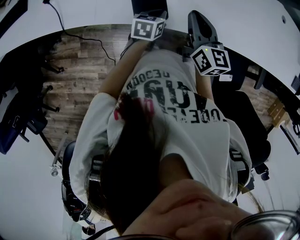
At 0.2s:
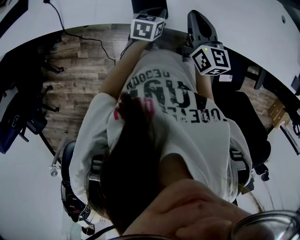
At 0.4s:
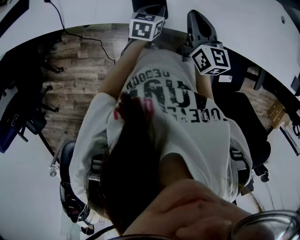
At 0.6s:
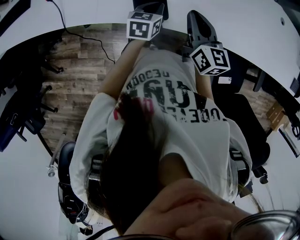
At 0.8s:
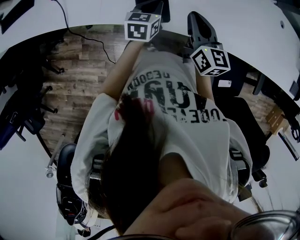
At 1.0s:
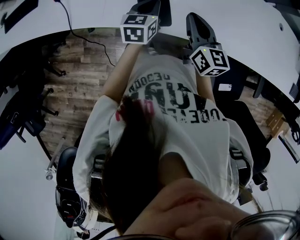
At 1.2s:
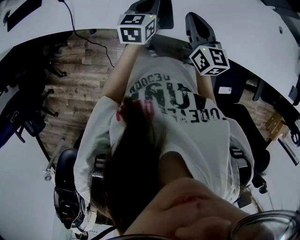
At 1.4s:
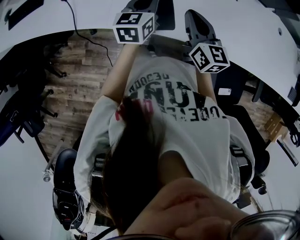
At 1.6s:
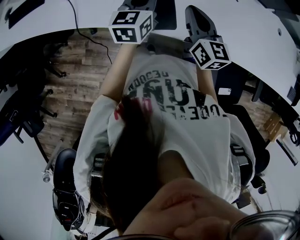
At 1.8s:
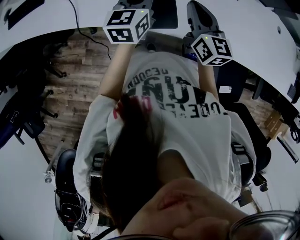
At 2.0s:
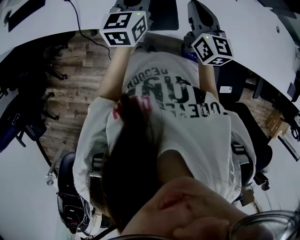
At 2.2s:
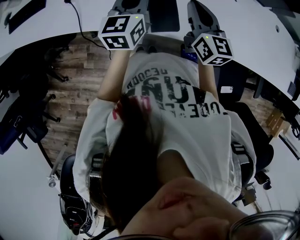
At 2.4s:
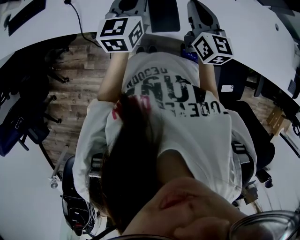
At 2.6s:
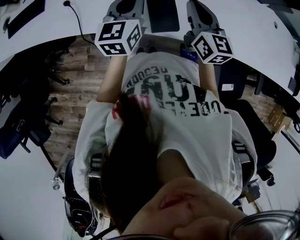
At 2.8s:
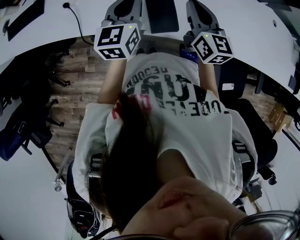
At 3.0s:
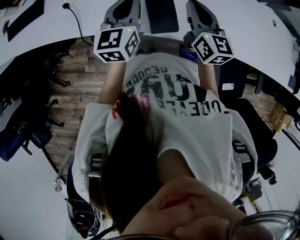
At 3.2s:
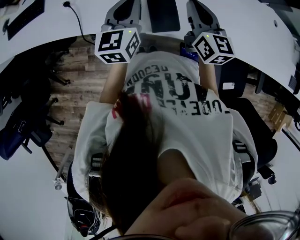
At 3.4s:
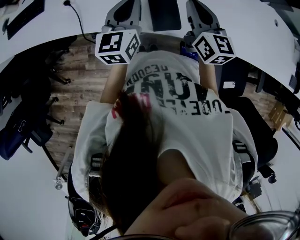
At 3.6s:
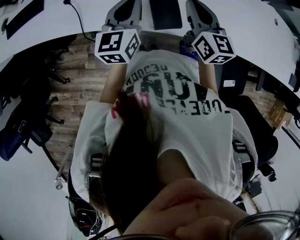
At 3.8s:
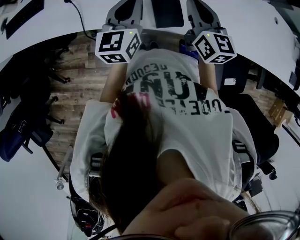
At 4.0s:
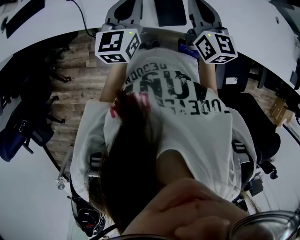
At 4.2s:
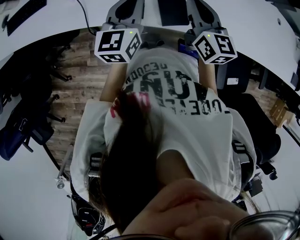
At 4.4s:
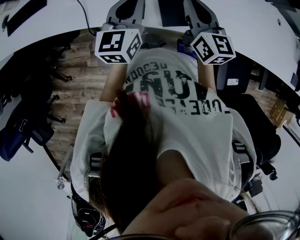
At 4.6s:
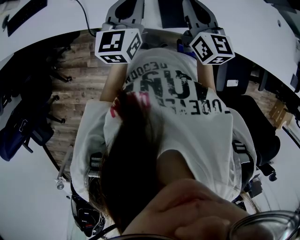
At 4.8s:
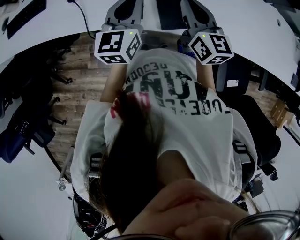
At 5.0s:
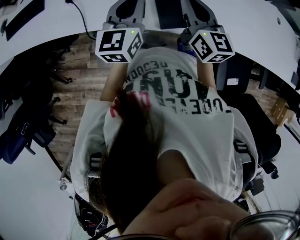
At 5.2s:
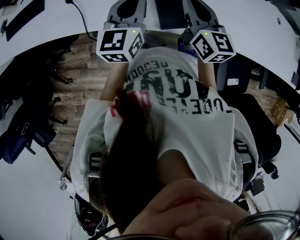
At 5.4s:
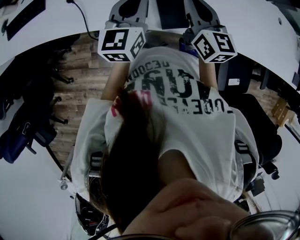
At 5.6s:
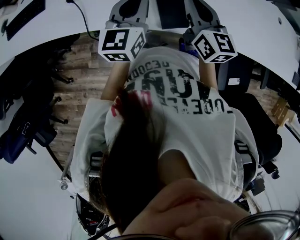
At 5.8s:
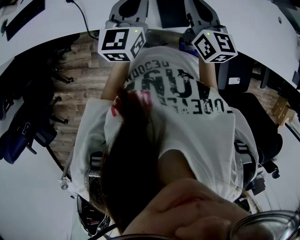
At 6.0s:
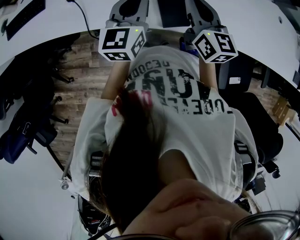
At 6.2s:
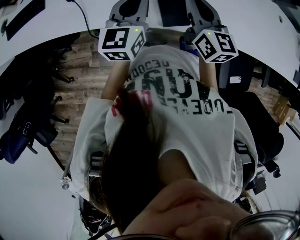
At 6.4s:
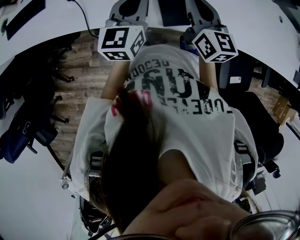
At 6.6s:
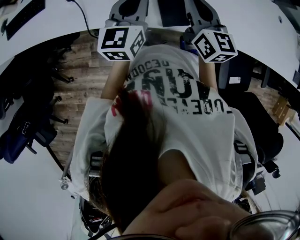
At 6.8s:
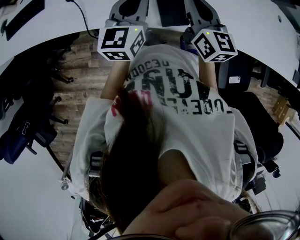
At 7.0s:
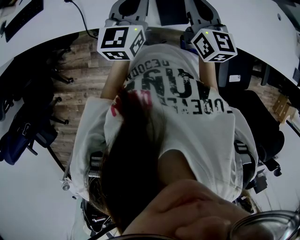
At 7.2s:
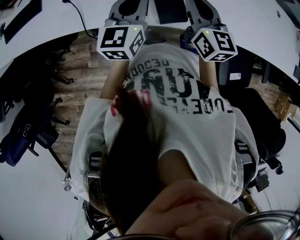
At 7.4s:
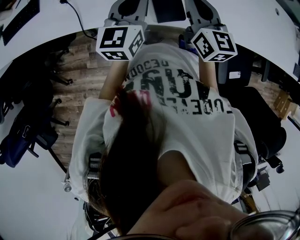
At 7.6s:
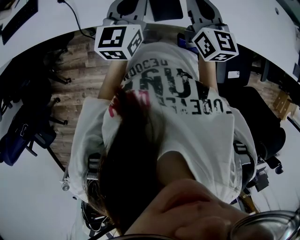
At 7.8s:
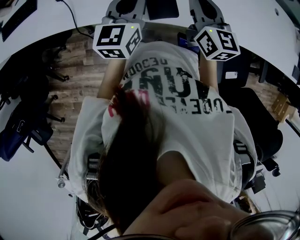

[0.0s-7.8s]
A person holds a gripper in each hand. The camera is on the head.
0.0s to 1.6s: The right gripper travels to the left by about 5 cm. Meanwhile the left gripper goes about 20 cm upward and to the left, and changes its angle by approximately 30 degrees.
1.6s to 3.2s: The left gripper goes some 5 cm to the left.
3.2s to 4.6s: The right gripper moves to the left, approximately 5 cm.
4.6s to 6.2s: The grippers make only small movements.
6.2s to 7.8s: Both grippers move to the right, roughly 5 cm.

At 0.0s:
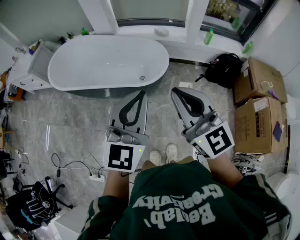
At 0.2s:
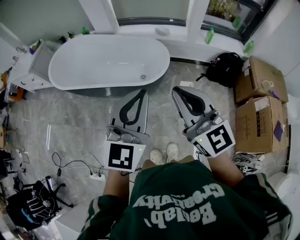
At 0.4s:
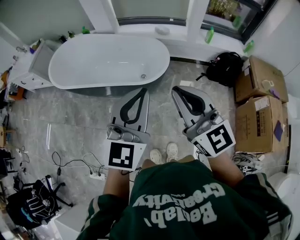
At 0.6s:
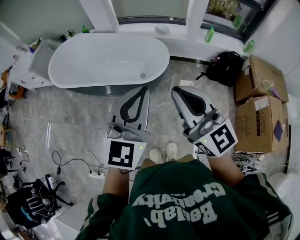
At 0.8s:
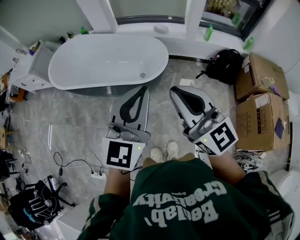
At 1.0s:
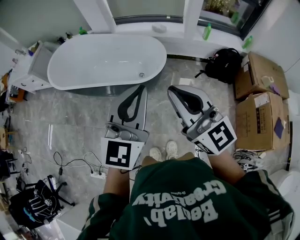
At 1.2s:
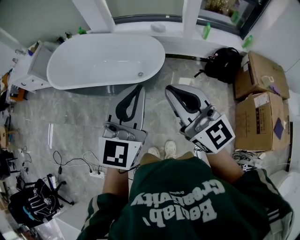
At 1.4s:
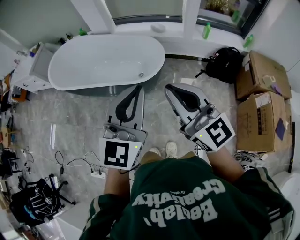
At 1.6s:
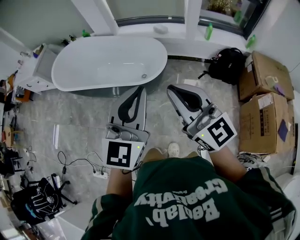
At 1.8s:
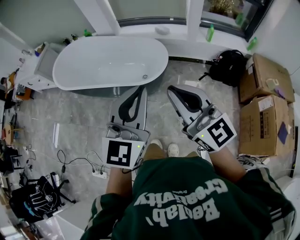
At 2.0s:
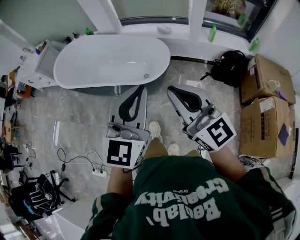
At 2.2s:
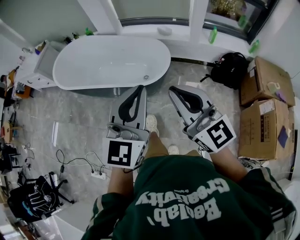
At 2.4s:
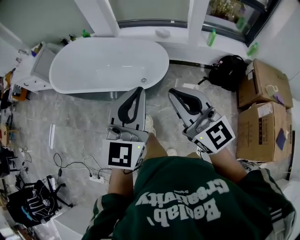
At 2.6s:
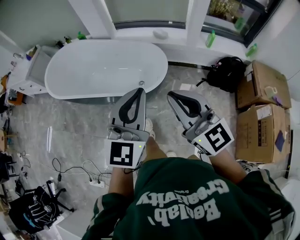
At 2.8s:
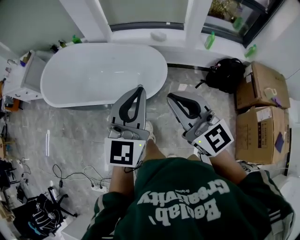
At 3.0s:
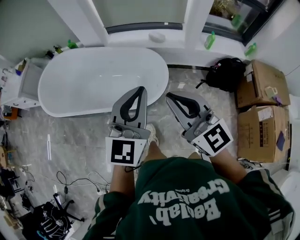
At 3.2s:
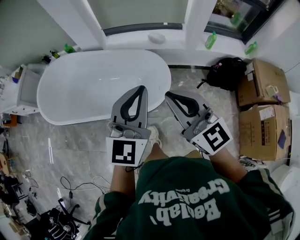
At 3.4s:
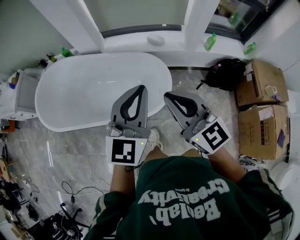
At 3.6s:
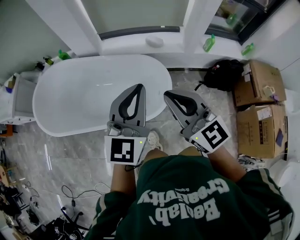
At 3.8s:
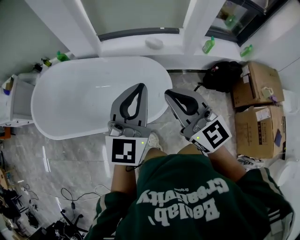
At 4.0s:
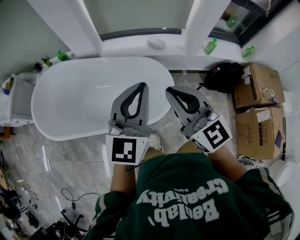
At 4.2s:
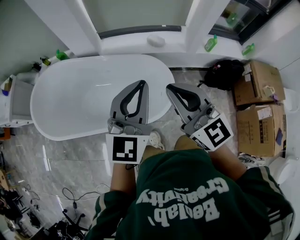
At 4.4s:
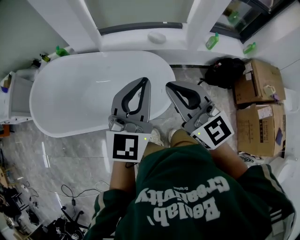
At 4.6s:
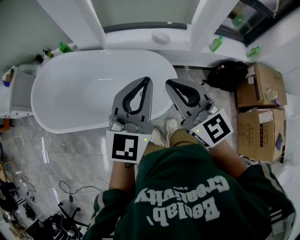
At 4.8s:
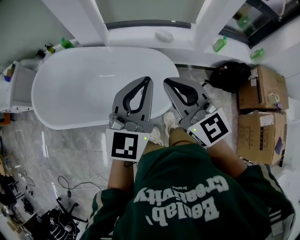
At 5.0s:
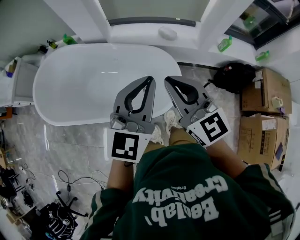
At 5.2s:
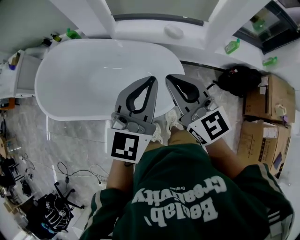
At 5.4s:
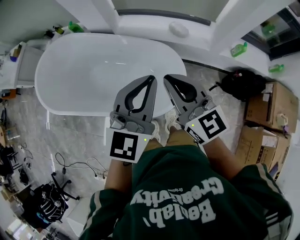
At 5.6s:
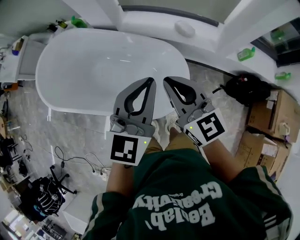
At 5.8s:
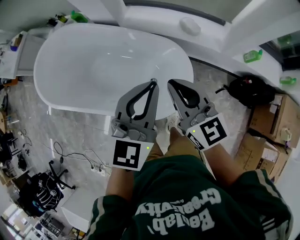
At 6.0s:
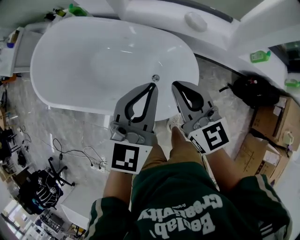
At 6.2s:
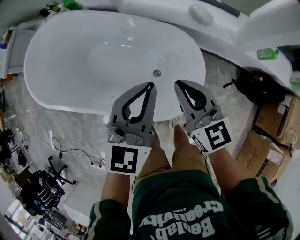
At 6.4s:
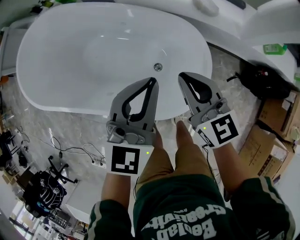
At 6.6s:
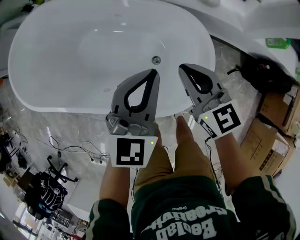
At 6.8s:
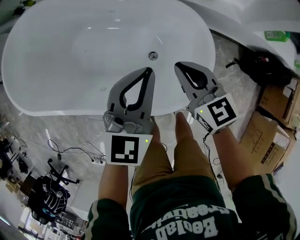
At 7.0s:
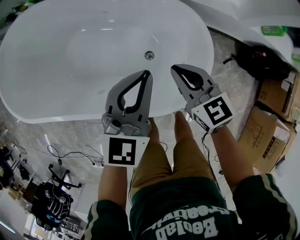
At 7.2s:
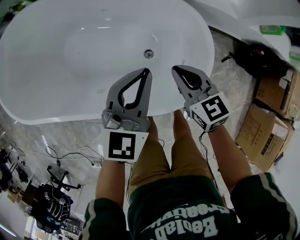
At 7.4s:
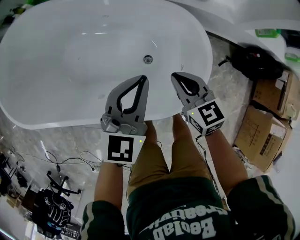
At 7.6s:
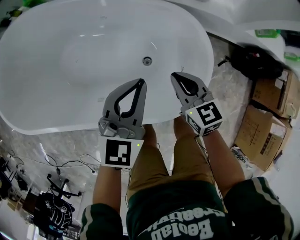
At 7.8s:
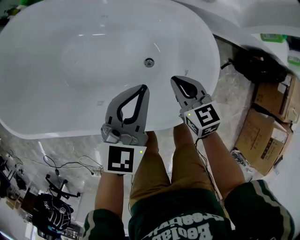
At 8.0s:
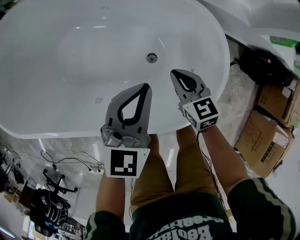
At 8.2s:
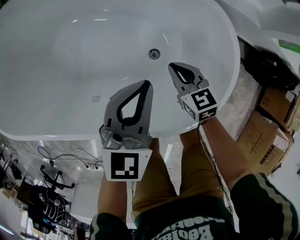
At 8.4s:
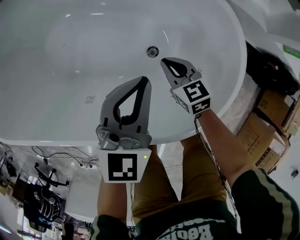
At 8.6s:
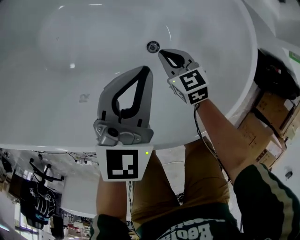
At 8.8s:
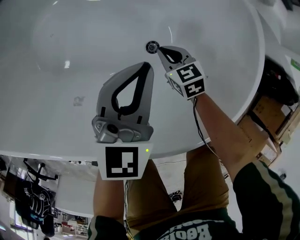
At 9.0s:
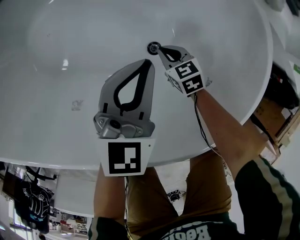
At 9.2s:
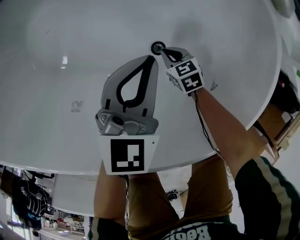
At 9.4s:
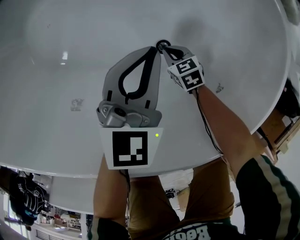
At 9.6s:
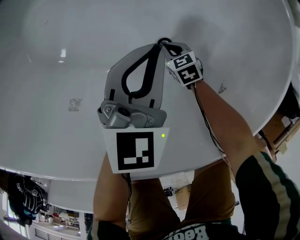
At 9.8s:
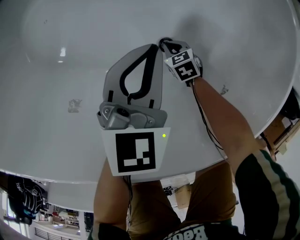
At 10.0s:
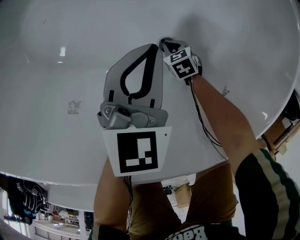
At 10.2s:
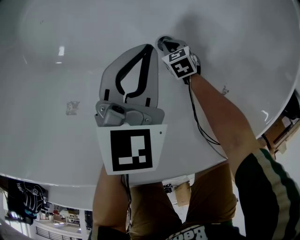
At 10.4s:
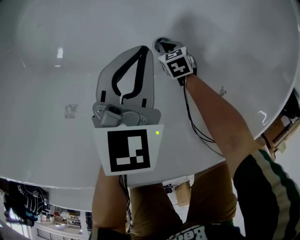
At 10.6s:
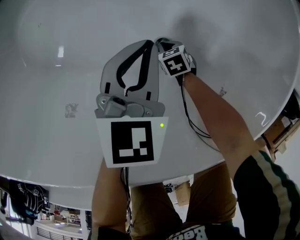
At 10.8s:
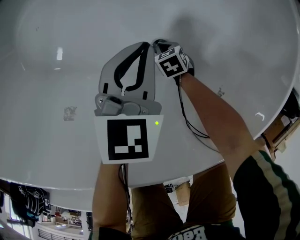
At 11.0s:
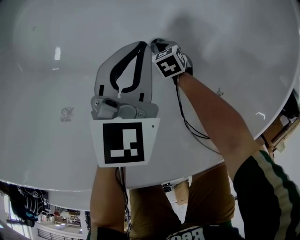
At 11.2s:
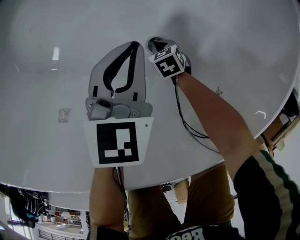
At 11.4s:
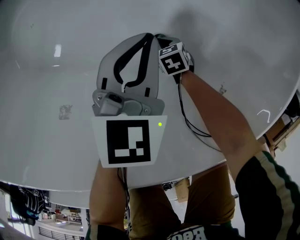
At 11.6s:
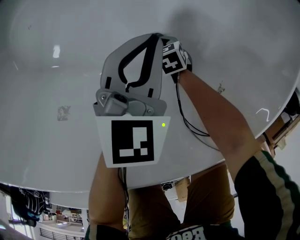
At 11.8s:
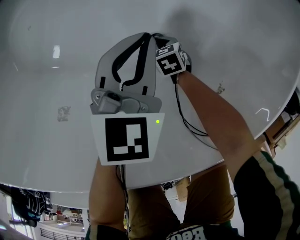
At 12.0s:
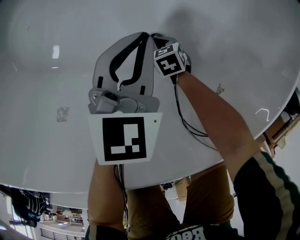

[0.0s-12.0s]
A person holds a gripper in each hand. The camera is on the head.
0.0s to 1.6s: Both grippers move to the right, roughly 5 cm.
1.6s to 3.0s: Both grippers move forward, approximately 20 cm.
3.0s to 4.4s: The grippers both shift forward and to the left by about 20 cm.
4.4s to 6.0s: Both grippers move downward and forward, about 20 cm. The right gripper changes its angle by approximately 20 degrees.
6.0s to 7.6s: The right gripper heads downward, covering some 25 cm, and turns by roughly 30 degrees. Meanwhile the left gripper shifts roughly 25 cm downward and to the left.
7.6s to 9.0s: The right gripper travels downward by some 40 cm, and turns by some 30 degrees; the left gripper shifts about 25 cm downward.
9.0s to 10.4s: The right gripper heads downward, covering some 15 cm, while the left gripper heads downward, covering some 10 cm.
10.4s to 12.0s: The grippers make only small movements.

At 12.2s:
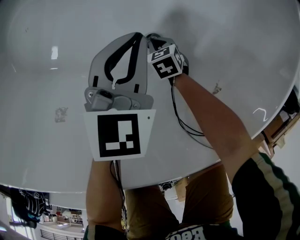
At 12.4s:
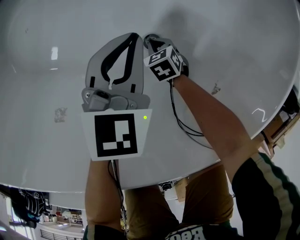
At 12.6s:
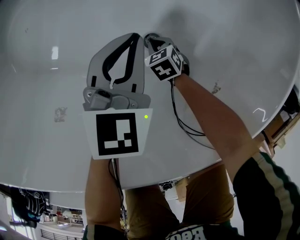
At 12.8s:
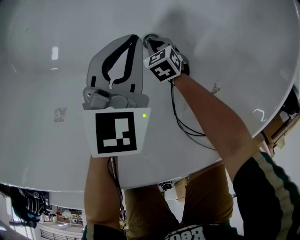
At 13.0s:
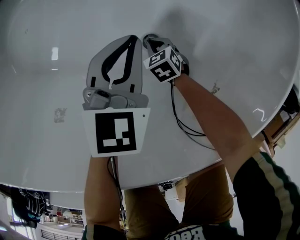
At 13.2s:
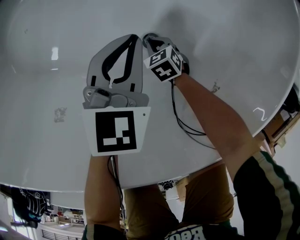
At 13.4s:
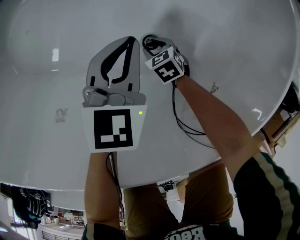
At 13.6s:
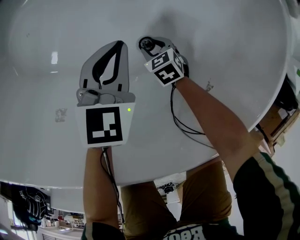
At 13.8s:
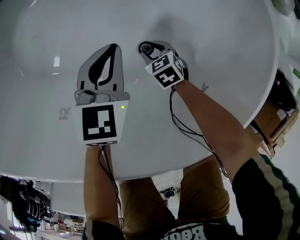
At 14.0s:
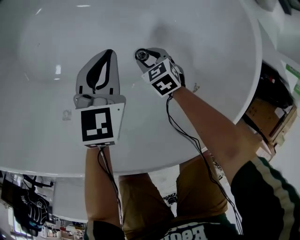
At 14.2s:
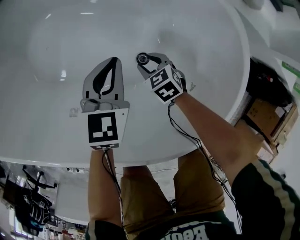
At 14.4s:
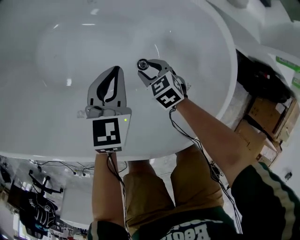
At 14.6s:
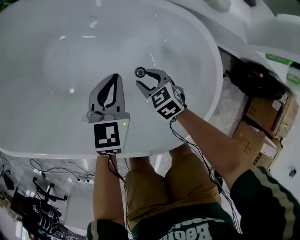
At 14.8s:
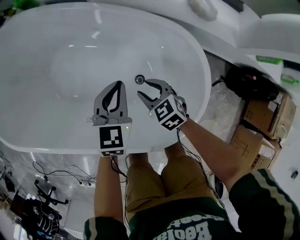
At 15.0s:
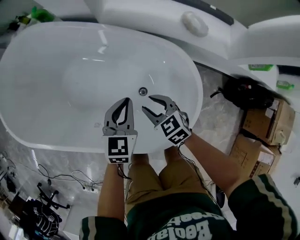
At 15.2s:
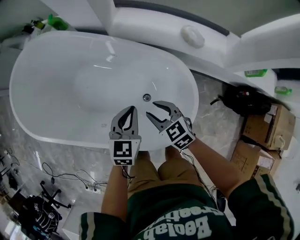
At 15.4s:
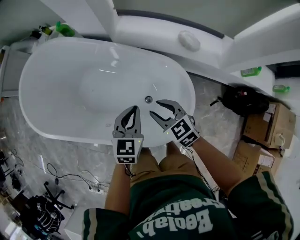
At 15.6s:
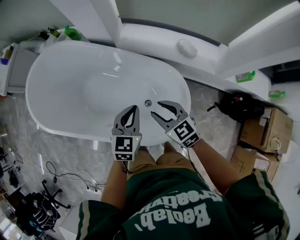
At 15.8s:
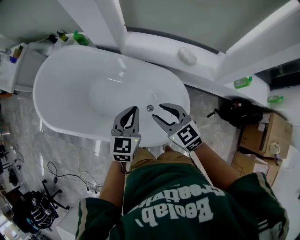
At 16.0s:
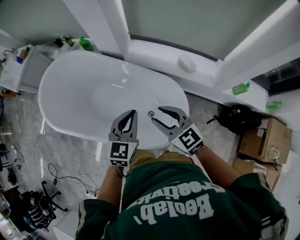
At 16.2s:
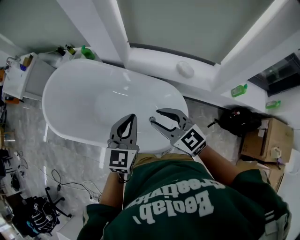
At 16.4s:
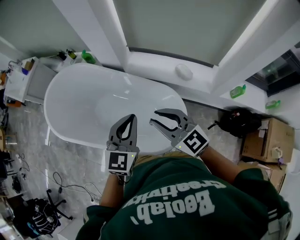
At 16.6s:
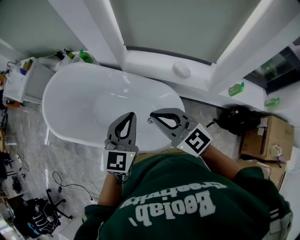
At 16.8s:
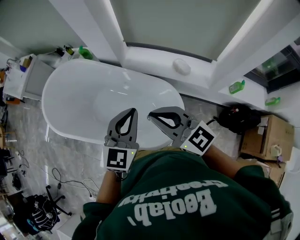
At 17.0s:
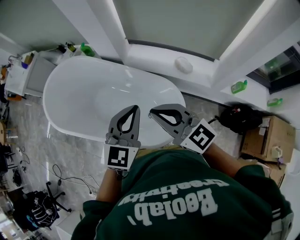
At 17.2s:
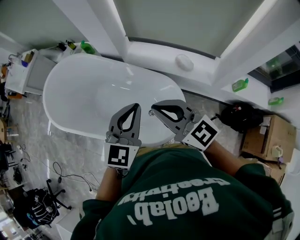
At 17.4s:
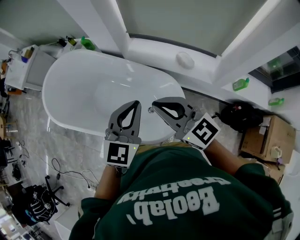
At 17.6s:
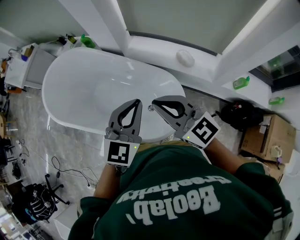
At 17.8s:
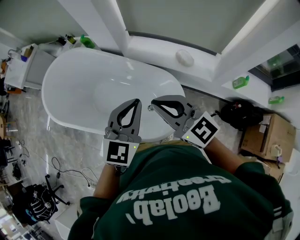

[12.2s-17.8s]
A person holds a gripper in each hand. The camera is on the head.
12.2s to 13.6s: The right gripper opens.
13.6s to 15.0s: The right gripper is displaced upward by some 40 cm, and rotates some 20 degrees; the left gripper is displaced upward by about 25 cm.
15.0s to 16.4s: The two grippers go roughly 40 cm upward. The right gripper tips its fingers upward by approximately 40 degrees, while the left gripper turns by roughly 20 degrees.
16.4s to 17.8s: The right gripper closes its fingers; the left gripper ends up about 5 cm from where it was.
